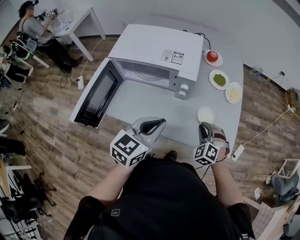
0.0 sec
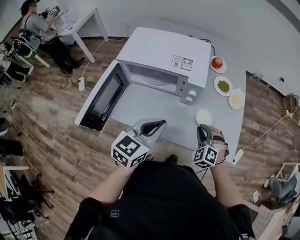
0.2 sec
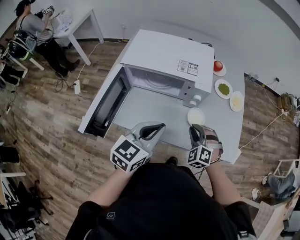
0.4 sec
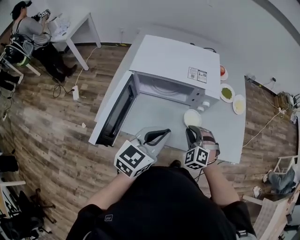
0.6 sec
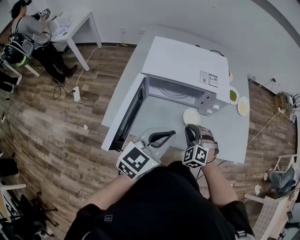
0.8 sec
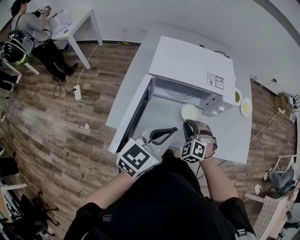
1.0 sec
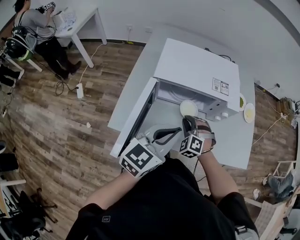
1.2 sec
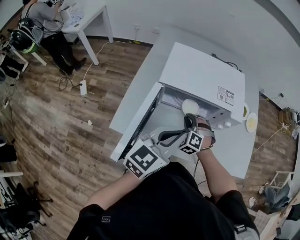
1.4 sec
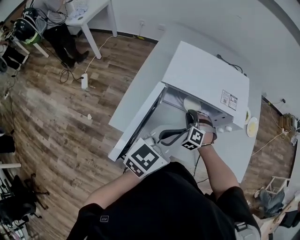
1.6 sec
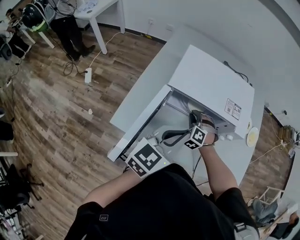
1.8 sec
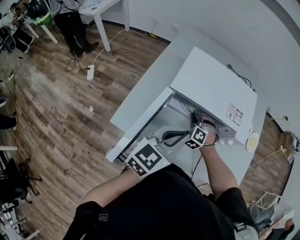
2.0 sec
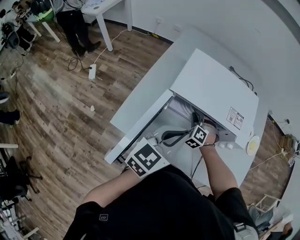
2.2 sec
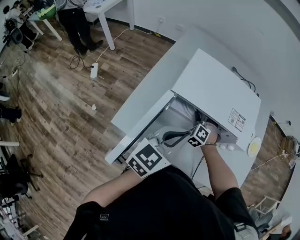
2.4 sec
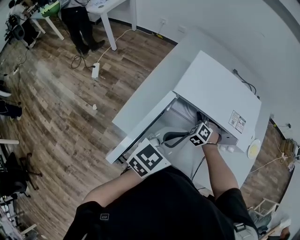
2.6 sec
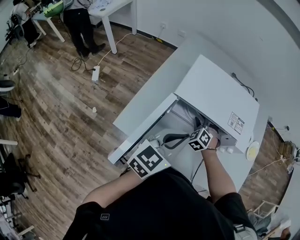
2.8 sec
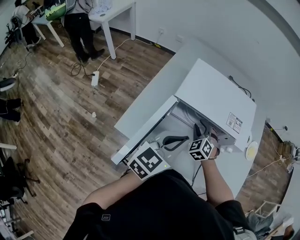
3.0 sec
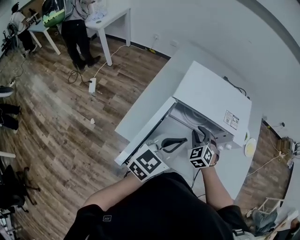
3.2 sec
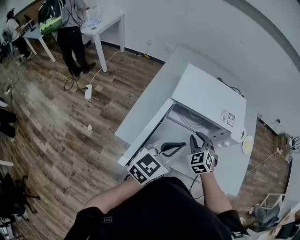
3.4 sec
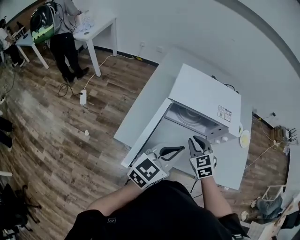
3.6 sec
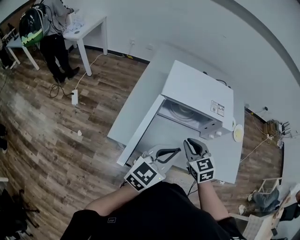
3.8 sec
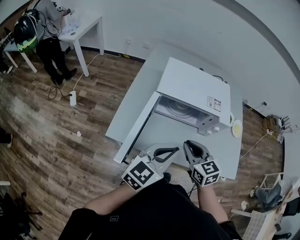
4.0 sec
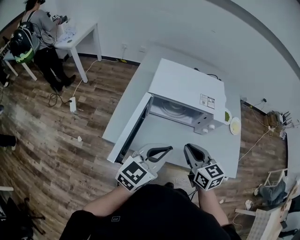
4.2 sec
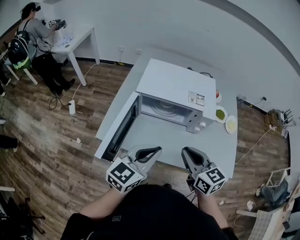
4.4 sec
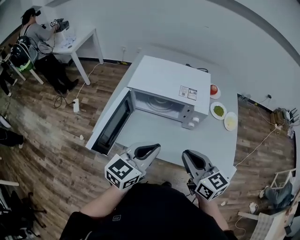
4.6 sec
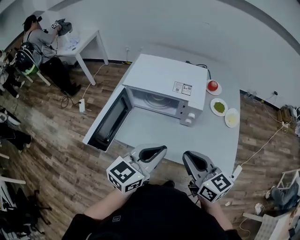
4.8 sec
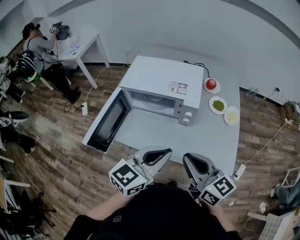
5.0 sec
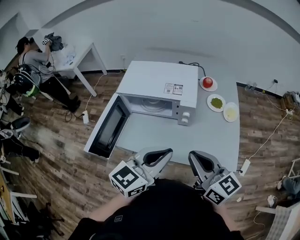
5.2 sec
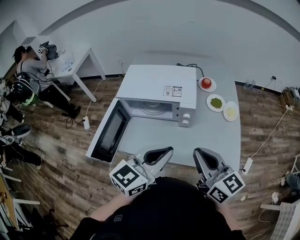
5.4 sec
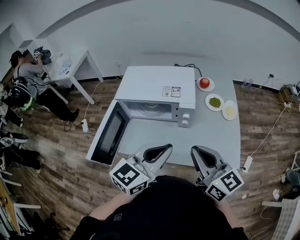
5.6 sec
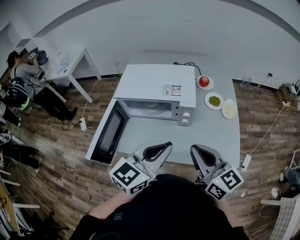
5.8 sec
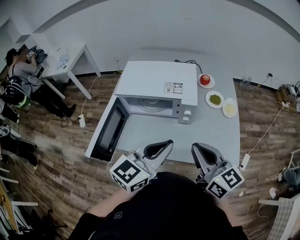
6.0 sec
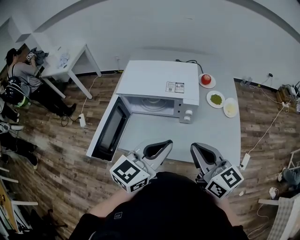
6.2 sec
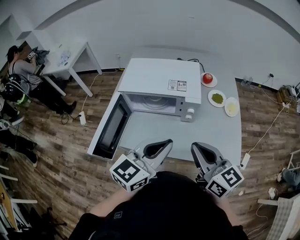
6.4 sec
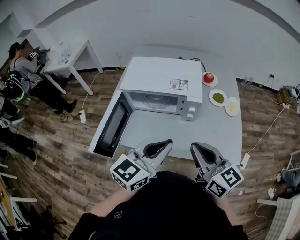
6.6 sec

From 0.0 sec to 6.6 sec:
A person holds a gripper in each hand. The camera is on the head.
From 0.0 sec to 1.6 sec: The right gripper heads to the left, covering roughly 35 cm. Meanwhile the left gripper is displaced to the left by some 20 cm.
From 1.6 sec to 3.2 sec: The right gripper travels upward by roughly 5 cm, and travels forward and back again, roughly 10 cm each way.
From 3.2 sec to 5.0 sec: The right gripper is displaced backward, to the right and upward by roughly 40 cm, and points its fingers about 30 degrees further upward, while the left gripper shifts roughly 25 cm to the right and backward.
From 5.0 sec to 6.6 sec: The grippers stay close to where they were, moving slightly.

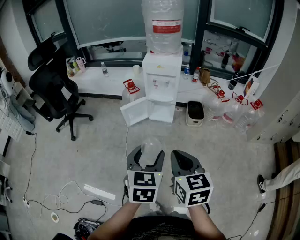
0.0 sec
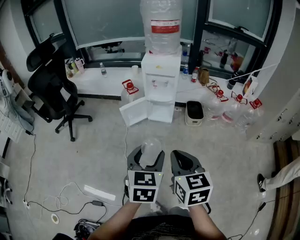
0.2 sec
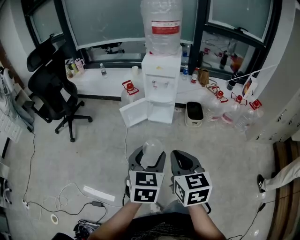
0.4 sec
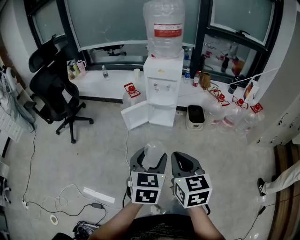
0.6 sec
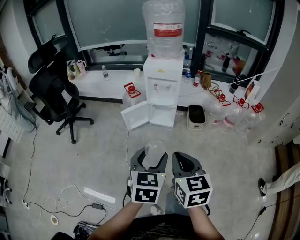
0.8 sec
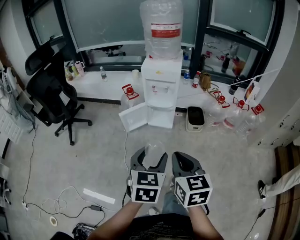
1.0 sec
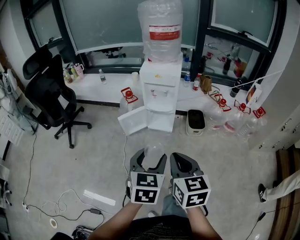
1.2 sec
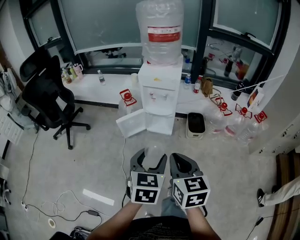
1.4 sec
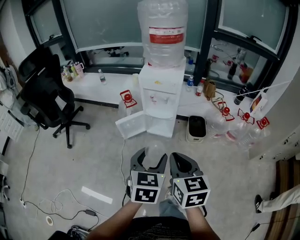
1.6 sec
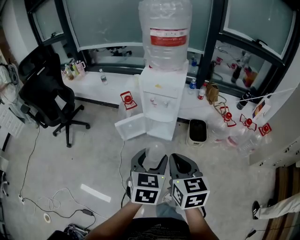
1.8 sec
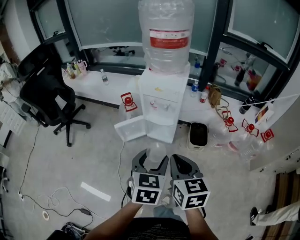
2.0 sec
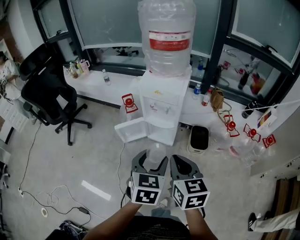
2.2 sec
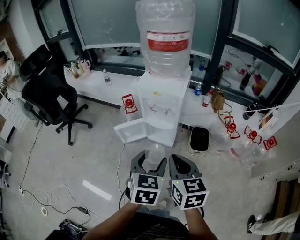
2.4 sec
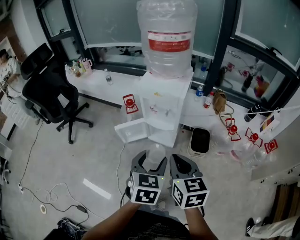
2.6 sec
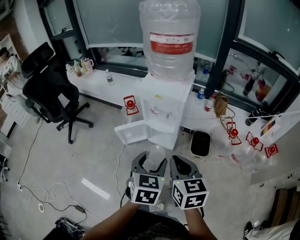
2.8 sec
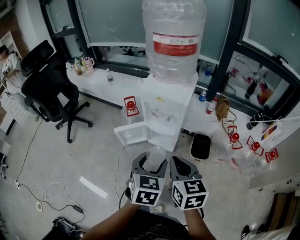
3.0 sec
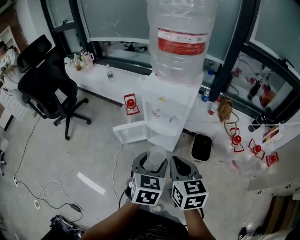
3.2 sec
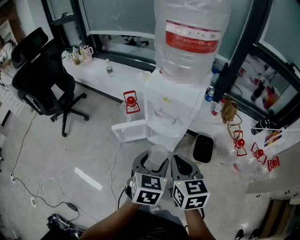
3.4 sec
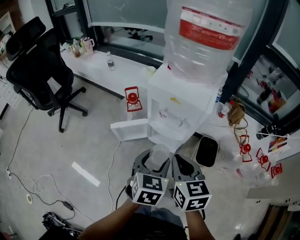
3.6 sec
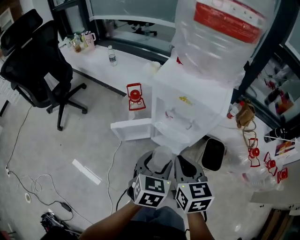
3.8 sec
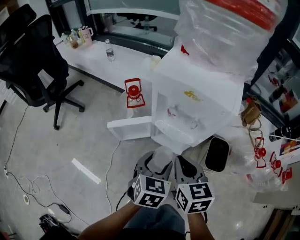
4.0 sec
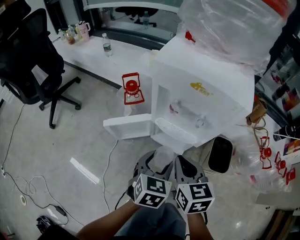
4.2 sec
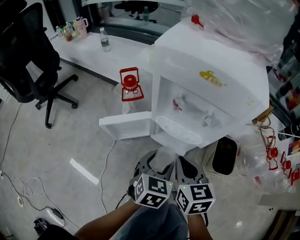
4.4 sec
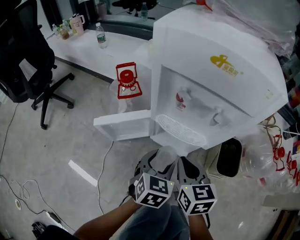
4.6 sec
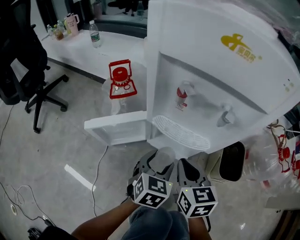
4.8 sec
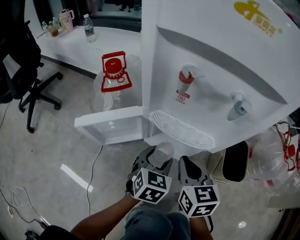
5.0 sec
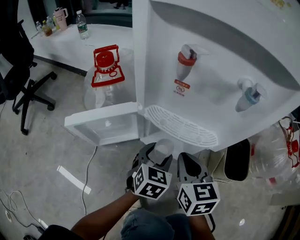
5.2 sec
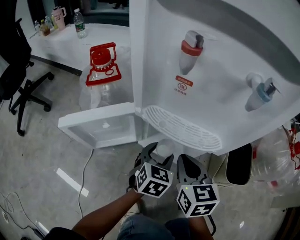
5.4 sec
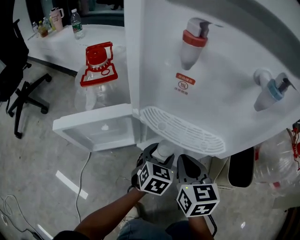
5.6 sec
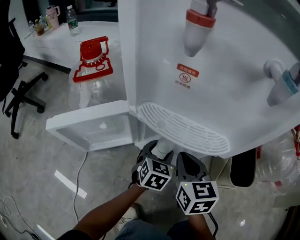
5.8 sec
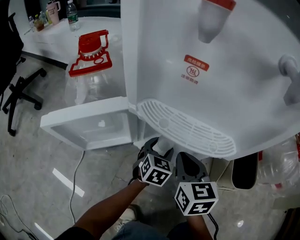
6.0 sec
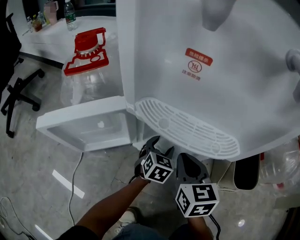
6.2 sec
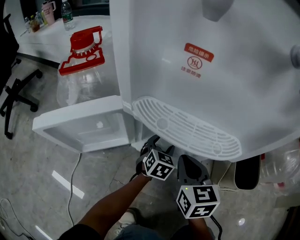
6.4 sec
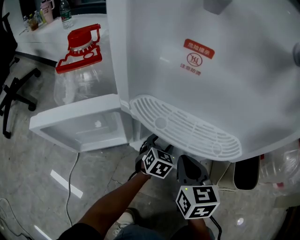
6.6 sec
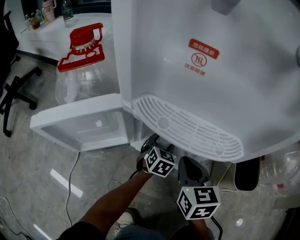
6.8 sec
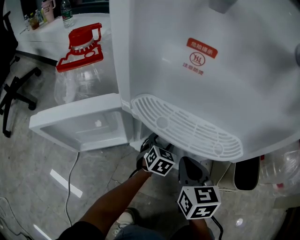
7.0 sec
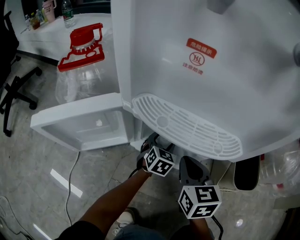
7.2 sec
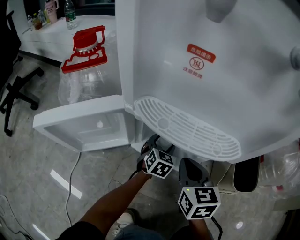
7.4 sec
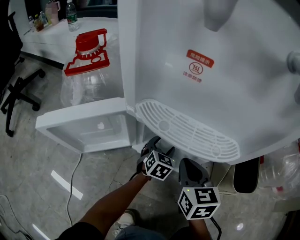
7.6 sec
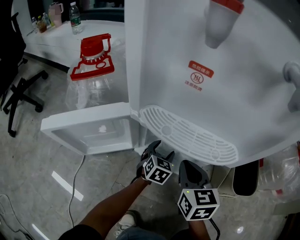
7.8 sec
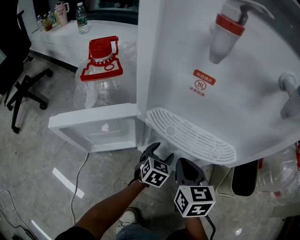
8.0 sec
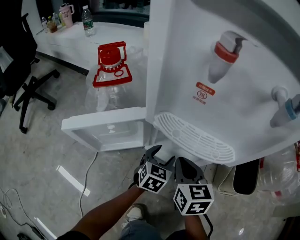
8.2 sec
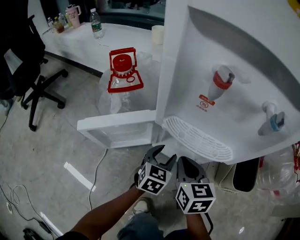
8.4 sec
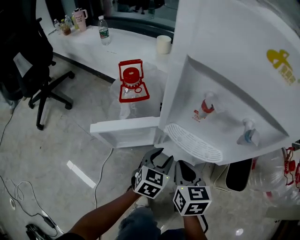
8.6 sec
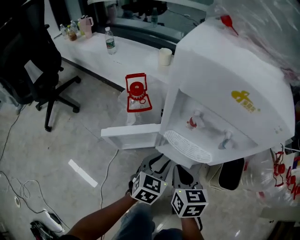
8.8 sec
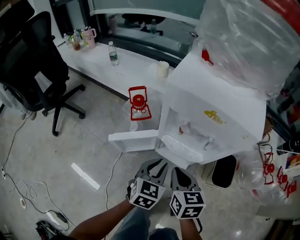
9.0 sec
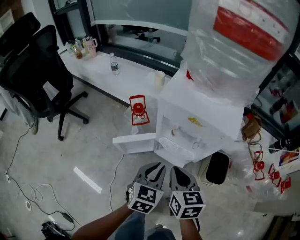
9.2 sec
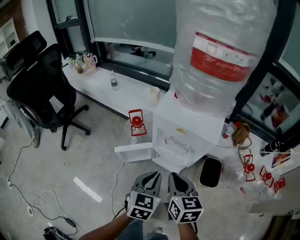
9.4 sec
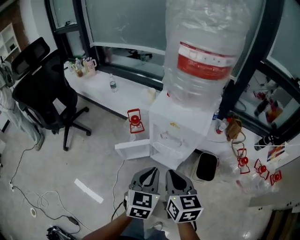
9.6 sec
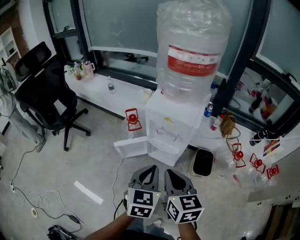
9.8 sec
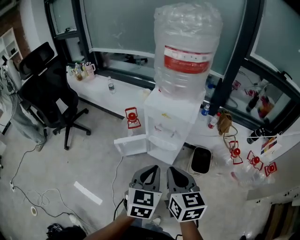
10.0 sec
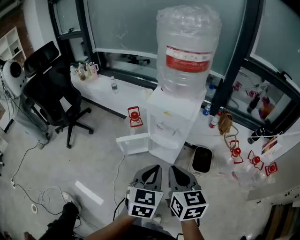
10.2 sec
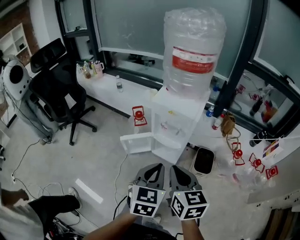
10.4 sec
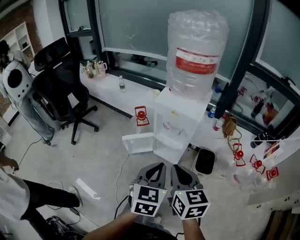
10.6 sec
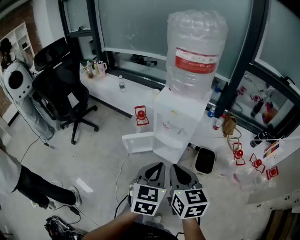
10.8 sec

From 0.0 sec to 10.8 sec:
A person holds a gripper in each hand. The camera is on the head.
From 0.0 sec to 1.6 sec: Both grippers travel together forward, some 15 cm.
From 1.6 sec to 3.0 sec: Both grippers move forward and to the right, roughly 15 cm.
From 3.0 sec to 4.6 sec: The grippers both shift downward and forward by roughly 50 cm.
From 4.6 sec to 6.2 sec: Both grippers move downward and forward, some 30 cm.
From 6.2 sec to 7.8 sec: The grippers make only small movements.
From 7.8 sec to 9.2 sec: Both grippers travel together upward, about 50 cm. The left gripper closes up.
From 9.2 sec to 10.8 sec: Both grippers move upward and backward, approximately 35 cm.

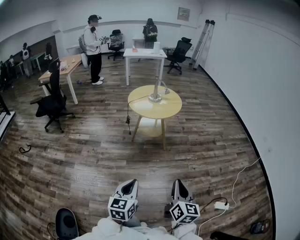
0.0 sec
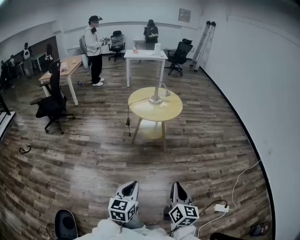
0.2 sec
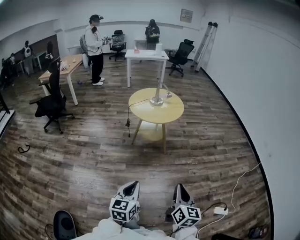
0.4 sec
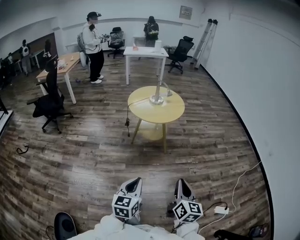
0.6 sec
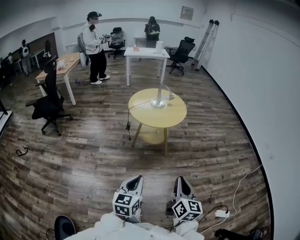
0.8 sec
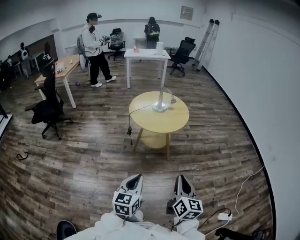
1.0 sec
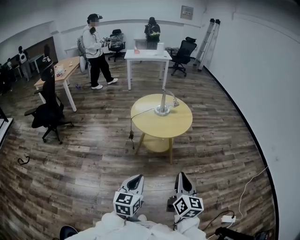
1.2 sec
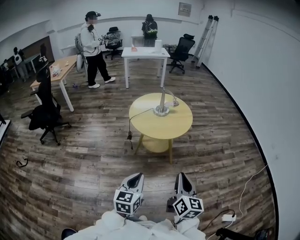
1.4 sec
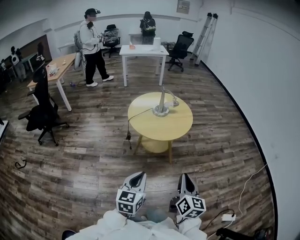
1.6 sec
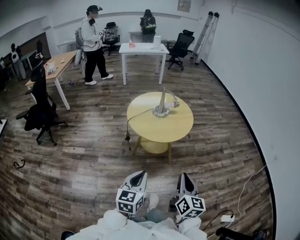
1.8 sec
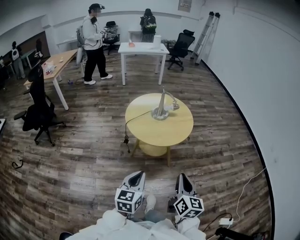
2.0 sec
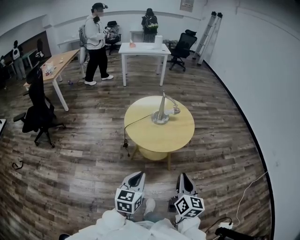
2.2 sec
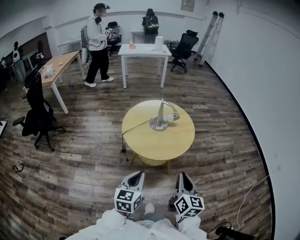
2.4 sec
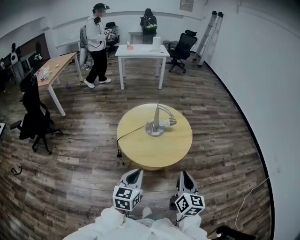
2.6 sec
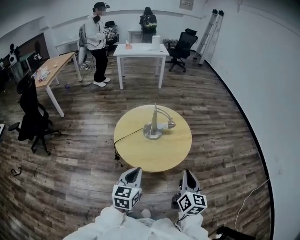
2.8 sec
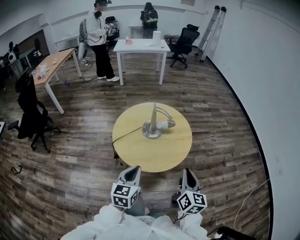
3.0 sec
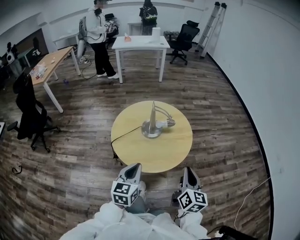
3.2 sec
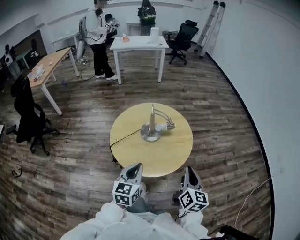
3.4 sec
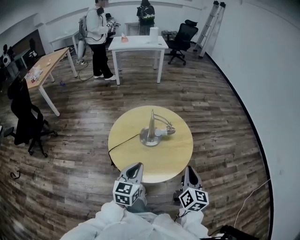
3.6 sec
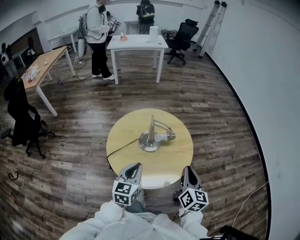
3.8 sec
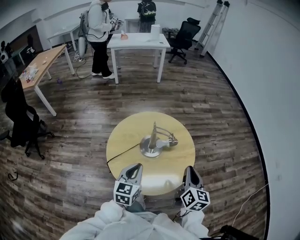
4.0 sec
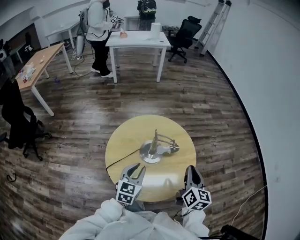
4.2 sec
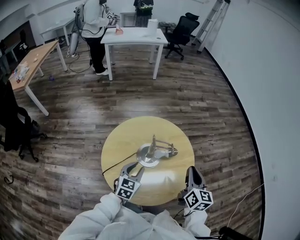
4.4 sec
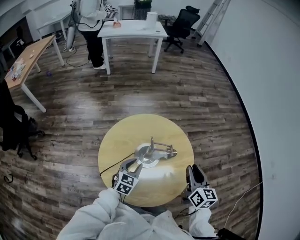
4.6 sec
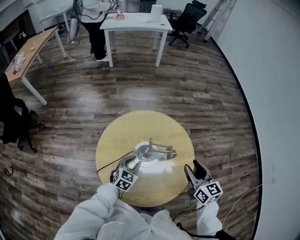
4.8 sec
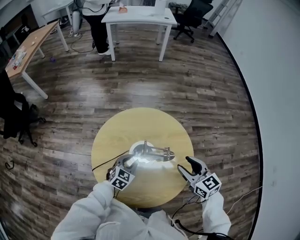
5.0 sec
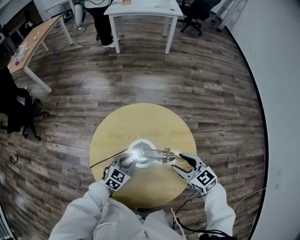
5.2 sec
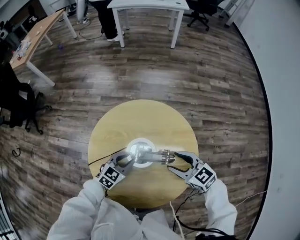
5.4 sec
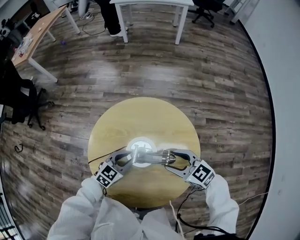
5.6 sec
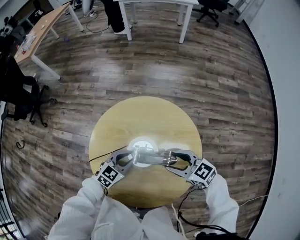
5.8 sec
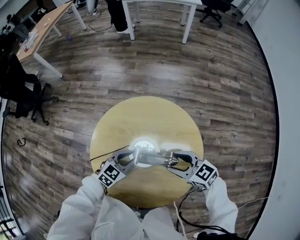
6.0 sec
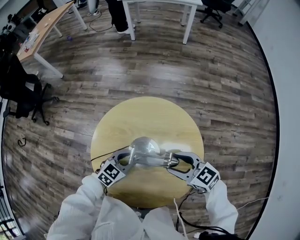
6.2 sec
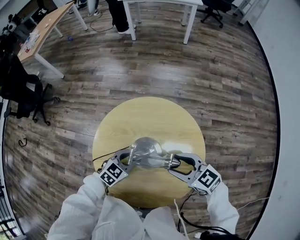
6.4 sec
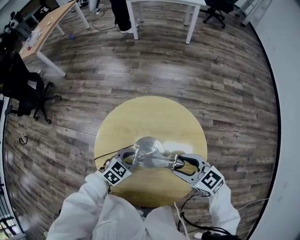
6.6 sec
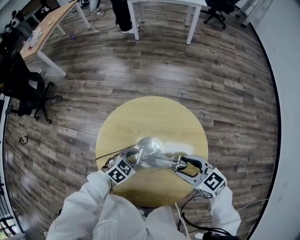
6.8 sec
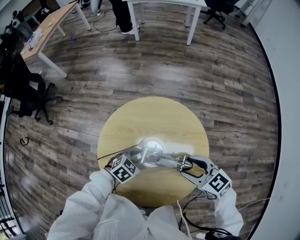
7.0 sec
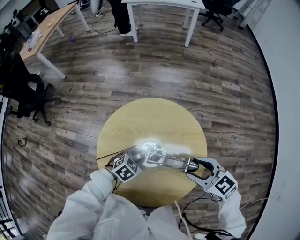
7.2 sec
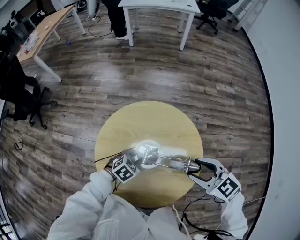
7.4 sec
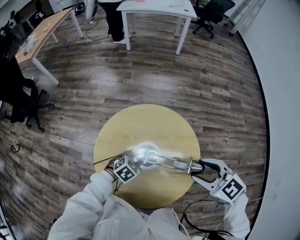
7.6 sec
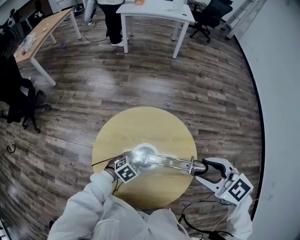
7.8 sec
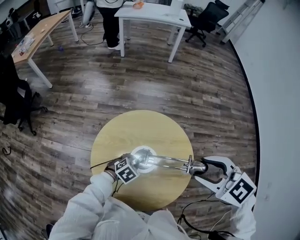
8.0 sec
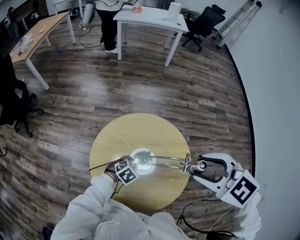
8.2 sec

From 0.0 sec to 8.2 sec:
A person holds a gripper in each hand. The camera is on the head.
From 0.0 sec to 1.6 sec: The two grippers go some 35 cm forward.
From 1.6 sec to 3.2 sec: Both grippers move forward, about 40 cm.
From 3.2 sec to 5.0 sec: The right gripper moves forward, roughly 35 cm, changes its angle by roughly 50 degrees, and opens up. Meanwhile the left gripper goes about 40 cm forward and downward, turns by roughly 30 degrees, and opens.
From 5.0 sec to 6.6 sec: The right gripper ends up roughly 10 cm from where it was, and swivels some 30 degrees.
From 6.6 sec to 8.2 sec: The right gripper travels upward by some 25 cm, and swivels about 30 degrees.
